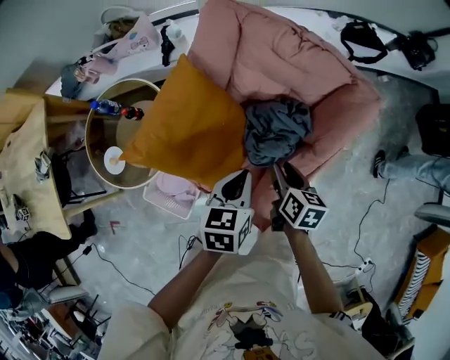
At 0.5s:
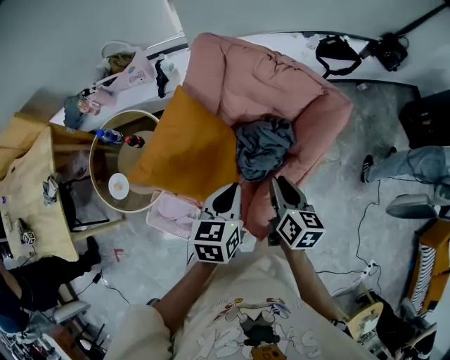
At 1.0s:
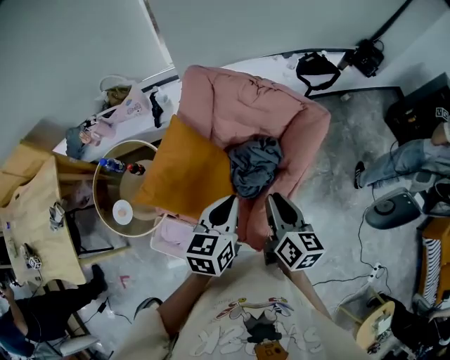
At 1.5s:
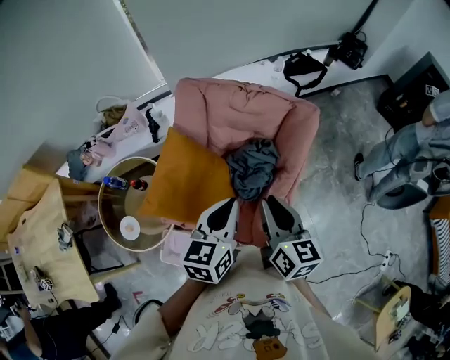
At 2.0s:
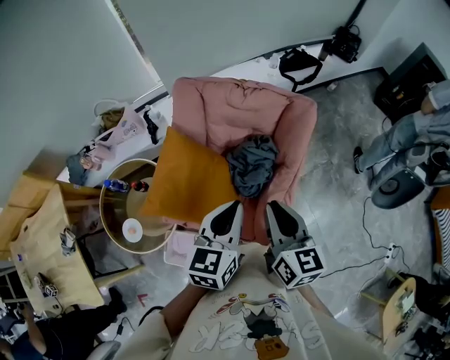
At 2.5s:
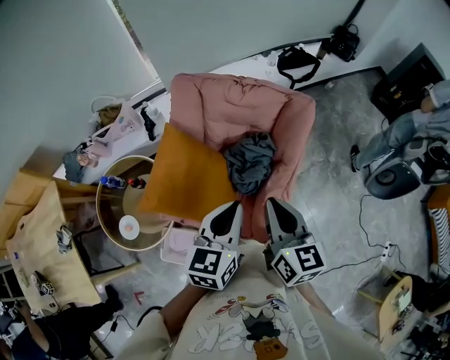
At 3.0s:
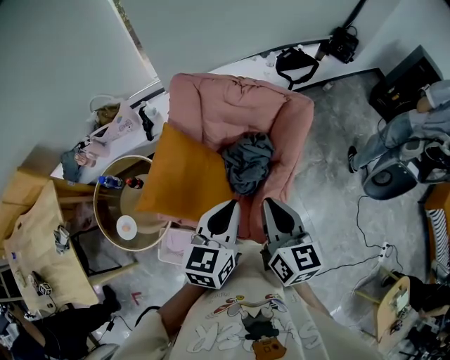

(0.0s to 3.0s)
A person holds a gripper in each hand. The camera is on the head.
0.0s - 1.5s: The grippers both shift upward by some 20 cm. The right gripper turns by about 30 degrees, while the left gripper turns by some 20 degrees.
1.5s - 3.0s: The grippers make only small movements.

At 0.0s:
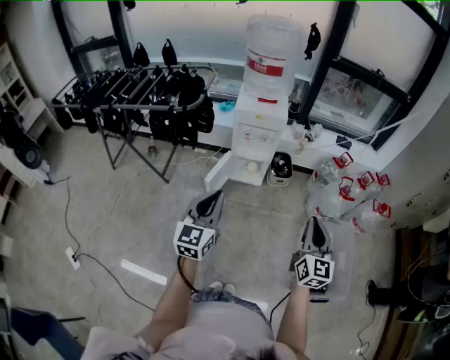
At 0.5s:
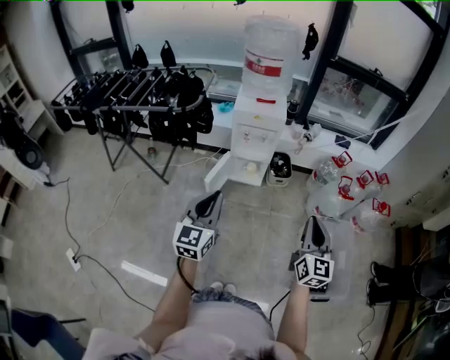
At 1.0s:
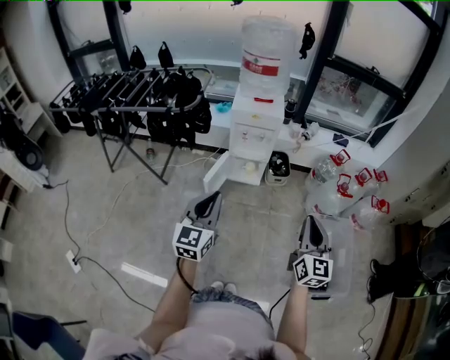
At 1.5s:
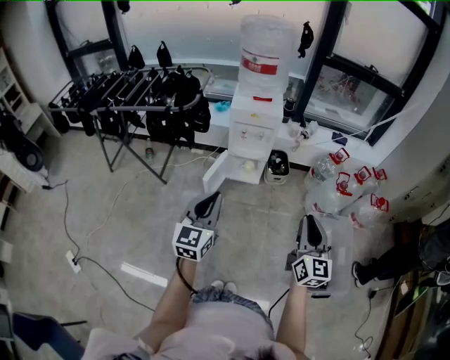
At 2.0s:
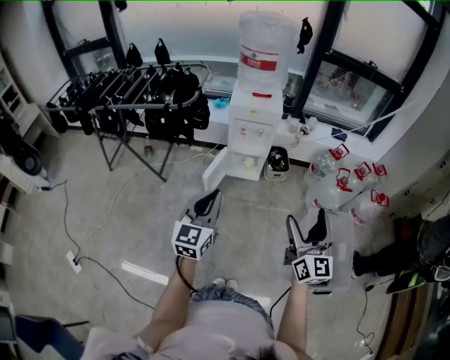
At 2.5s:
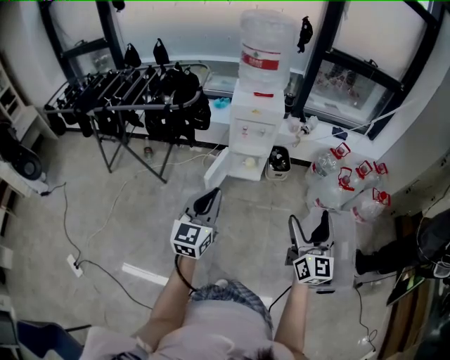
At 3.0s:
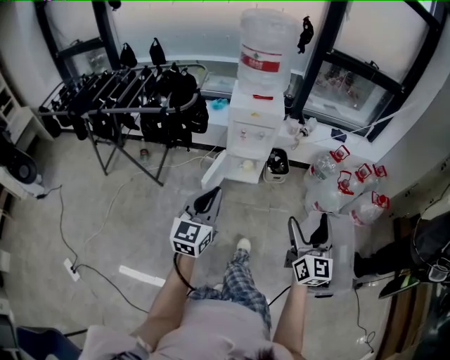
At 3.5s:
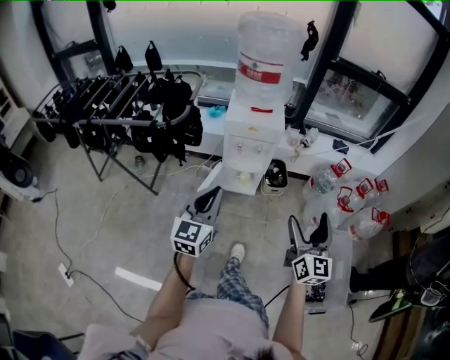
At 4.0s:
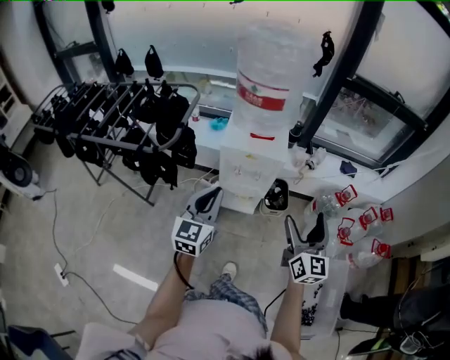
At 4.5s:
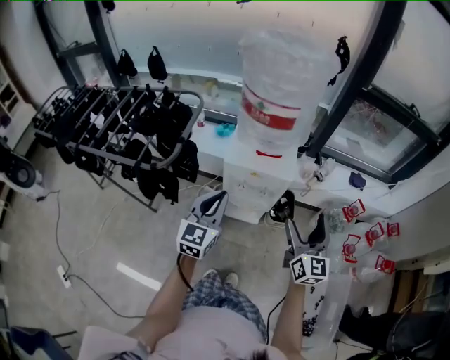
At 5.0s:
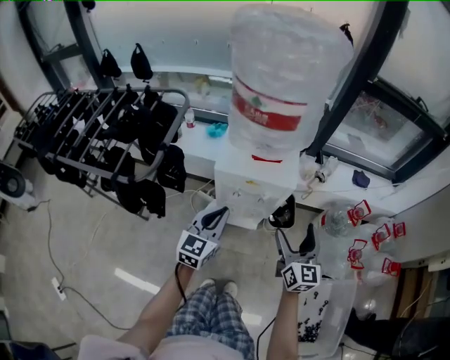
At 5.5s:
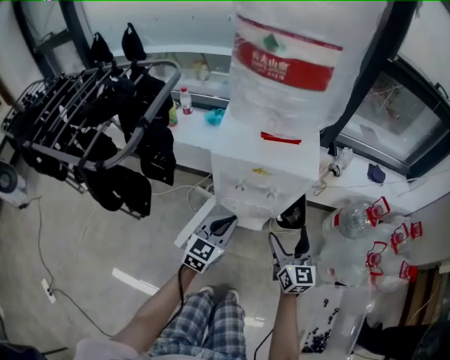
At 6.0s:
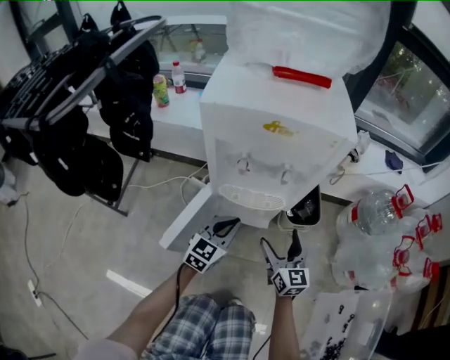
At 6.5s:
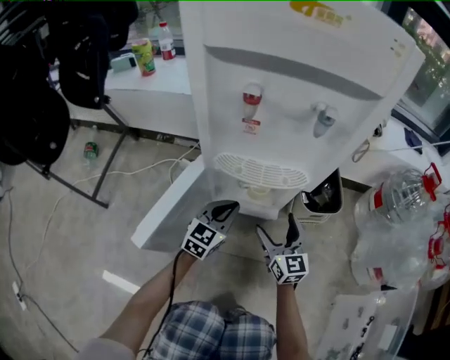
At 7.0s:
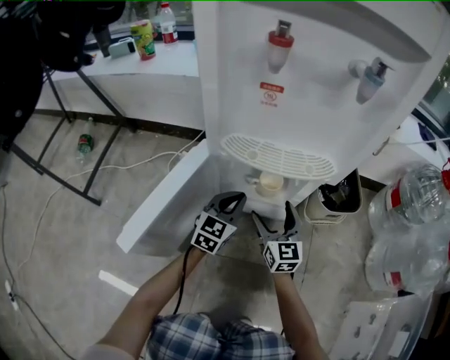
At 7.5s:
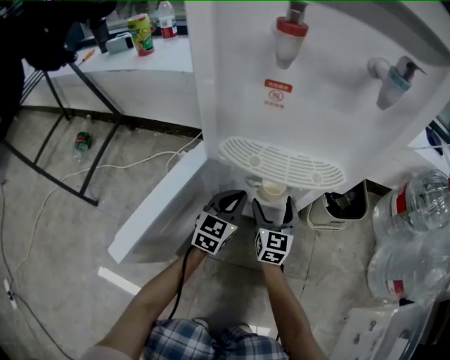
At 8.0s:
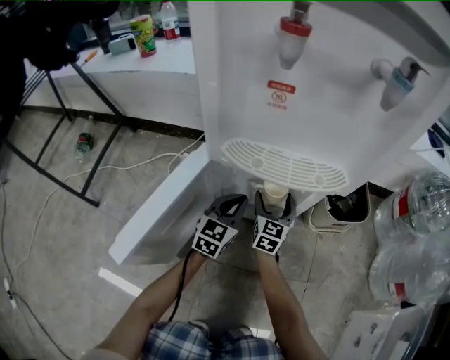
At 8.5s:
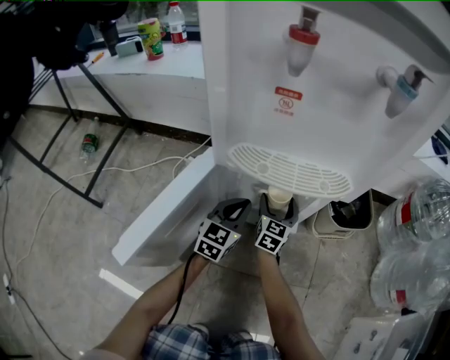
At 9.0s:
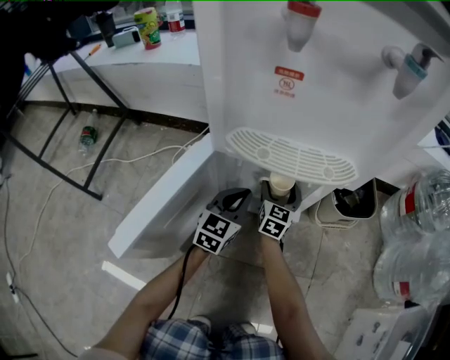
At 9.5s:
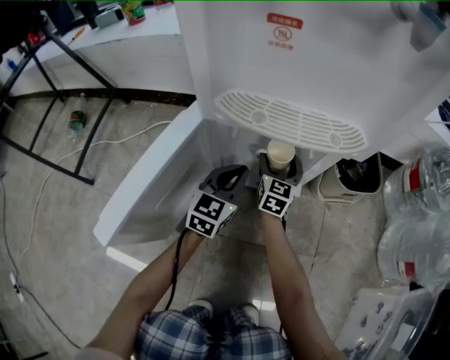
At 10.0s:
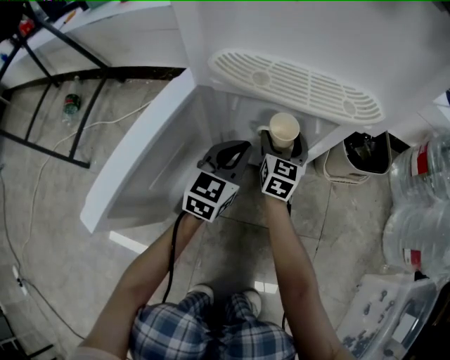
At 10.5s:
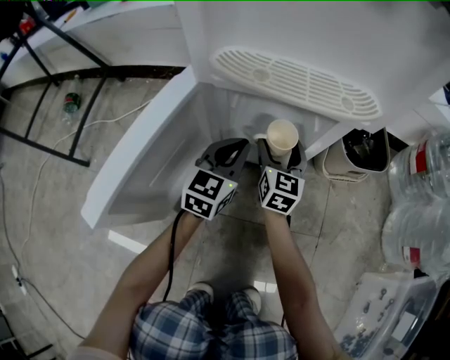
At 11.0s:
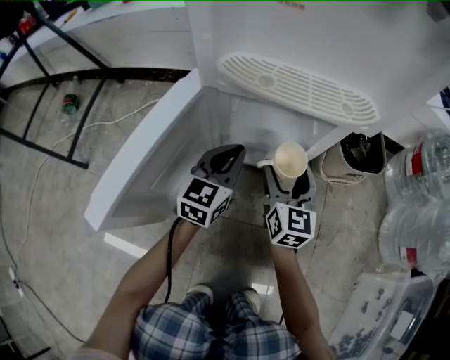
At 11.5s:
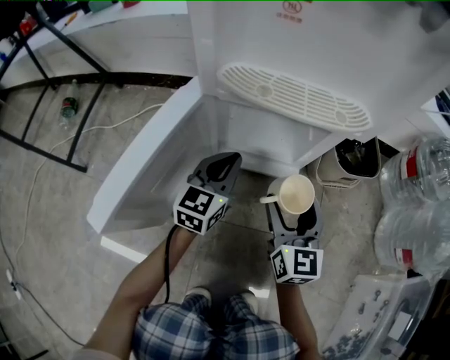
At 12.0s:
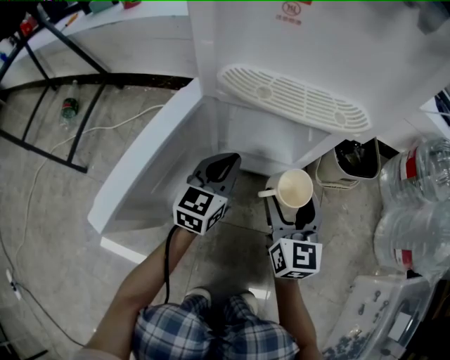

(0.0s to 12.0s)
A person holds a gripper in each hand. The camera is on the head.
0.0s - 2.0s: The right gripper shifts by some 5 cm, and opens up.
2.0s - 4.0s: Both grippers travel together forward, about 35 cm.
4.0s - 6.0s: The grippers both shift downward by some 60 cm. The left gripper turns by some 20 degrees.
6.0s - 8.0s: The right gripper moves downward and forward, approximately 40 cm, and changes its angle by approximately 20 degrees. The left gripper travels downward by approximately 30 cm.
8.0s - 10.0s: The grippers make only small movements.
10.0s - 12.0s: The right gripper travels backward and upward by roughly 20 cm.

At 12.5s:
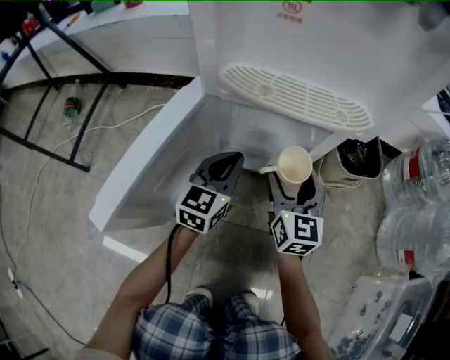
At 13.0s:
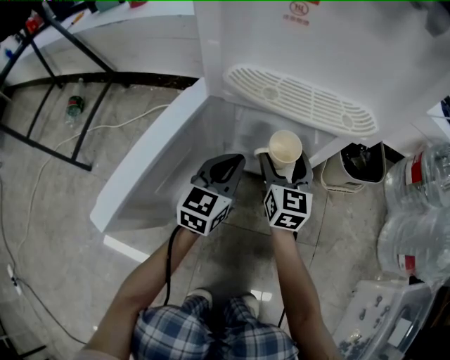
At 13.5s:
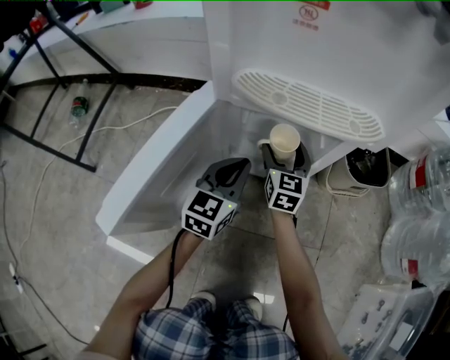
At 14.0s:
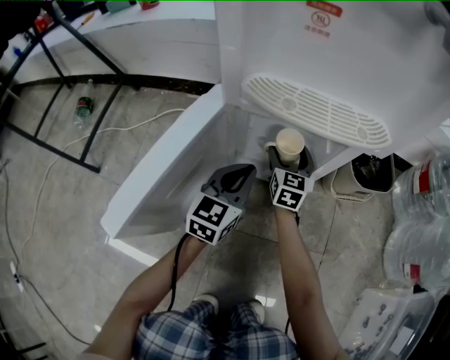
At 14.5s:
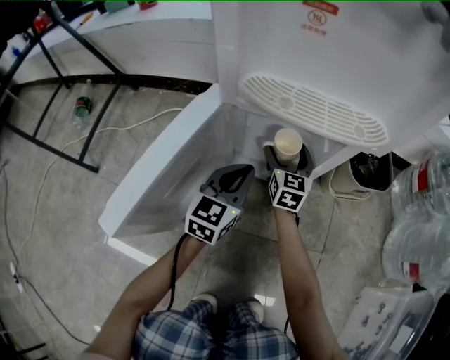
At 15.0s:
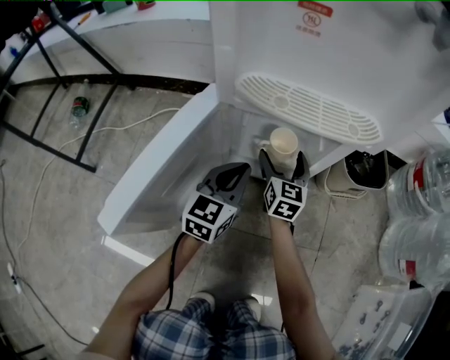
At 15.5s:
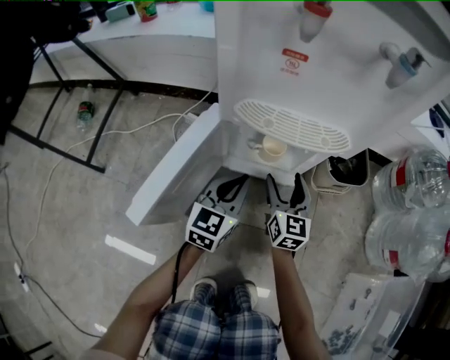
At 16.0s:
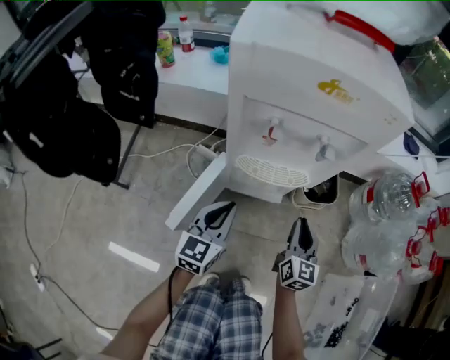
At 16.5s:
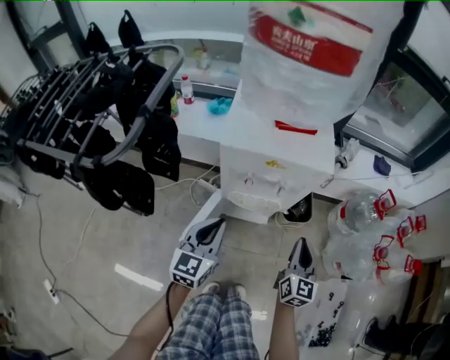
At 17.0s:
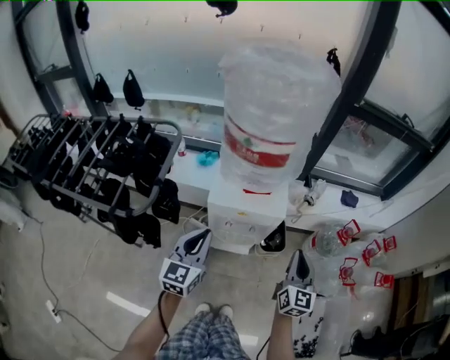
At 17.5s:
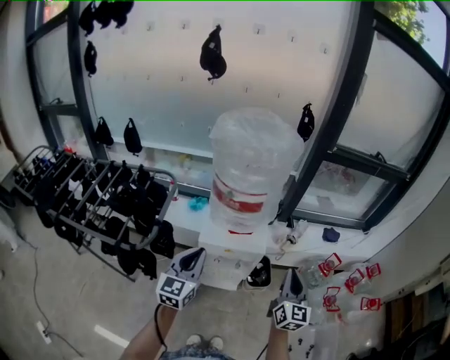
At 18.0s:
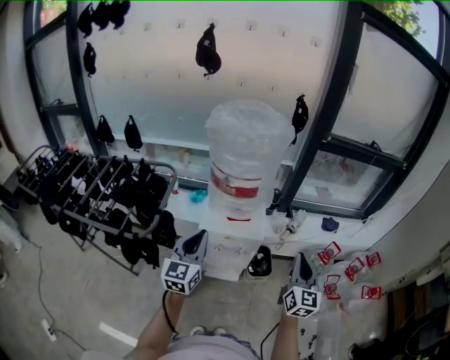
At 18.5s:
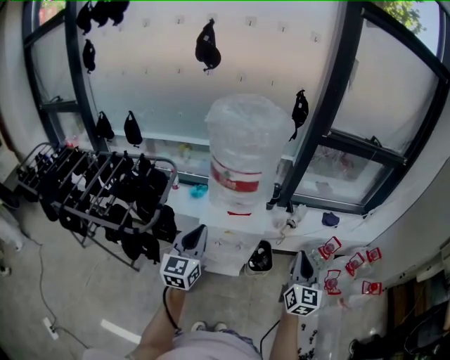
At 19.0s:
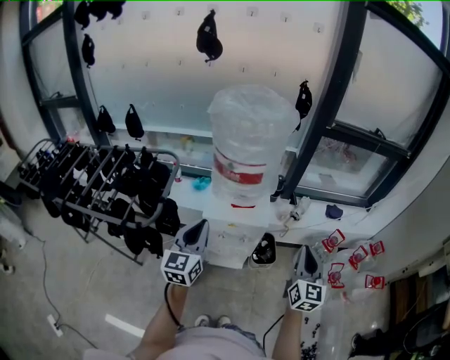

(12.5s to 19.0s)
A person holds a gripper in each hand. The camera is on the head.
12.5s - 14.5s: The right gripper shifts some 15 cm forward and downward.
14.5s - 17.0s: The two grippers go roughly 80 cm upward. The right gripper closes.
17.0s - 19.0s: The grippers both shift upward by approximately 15 cm.

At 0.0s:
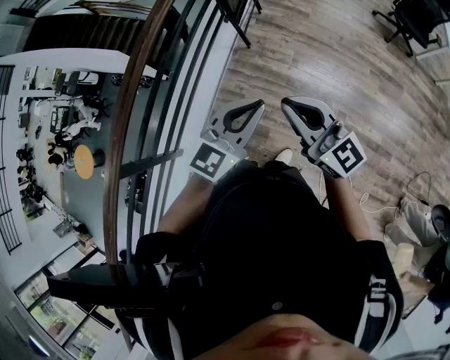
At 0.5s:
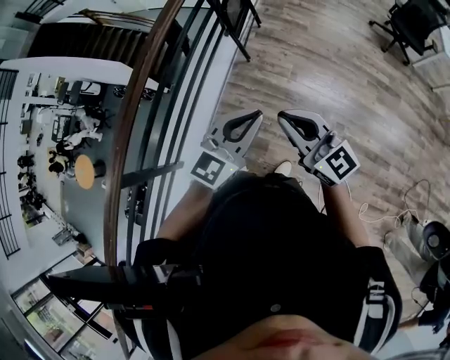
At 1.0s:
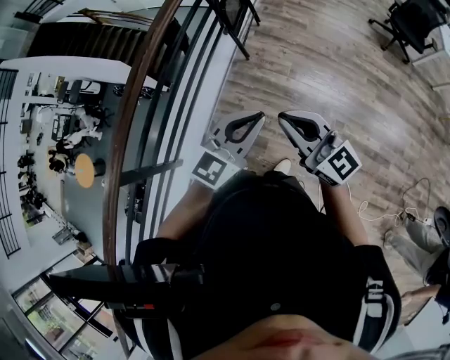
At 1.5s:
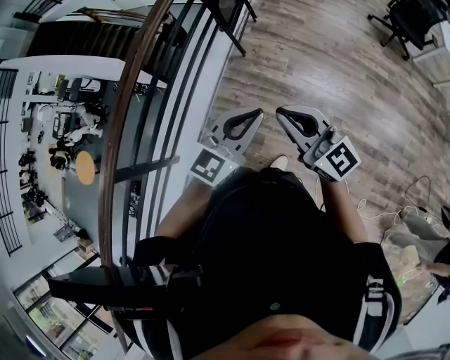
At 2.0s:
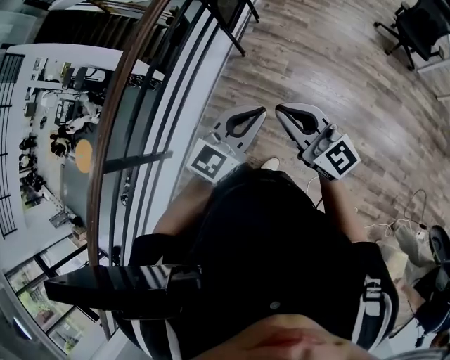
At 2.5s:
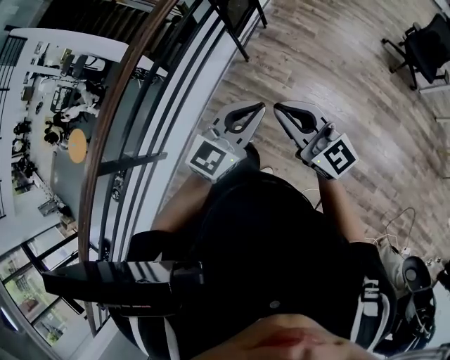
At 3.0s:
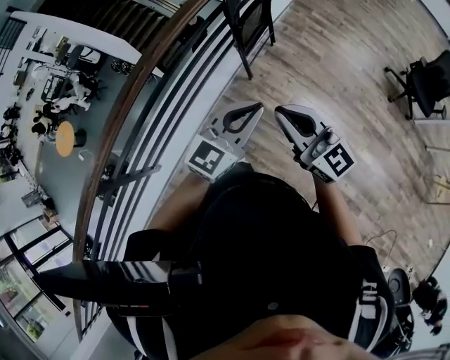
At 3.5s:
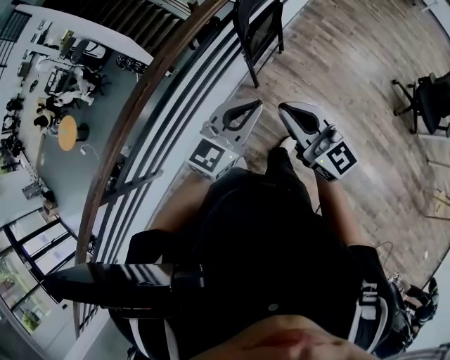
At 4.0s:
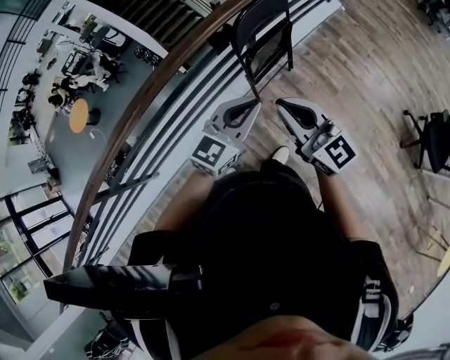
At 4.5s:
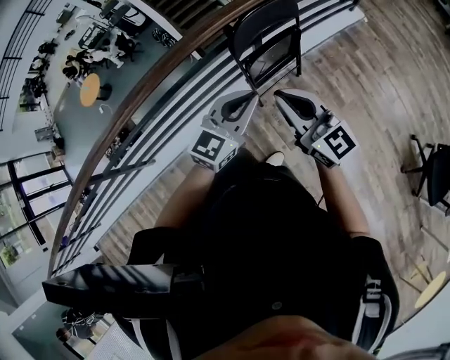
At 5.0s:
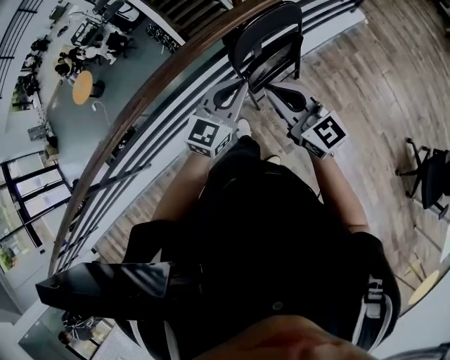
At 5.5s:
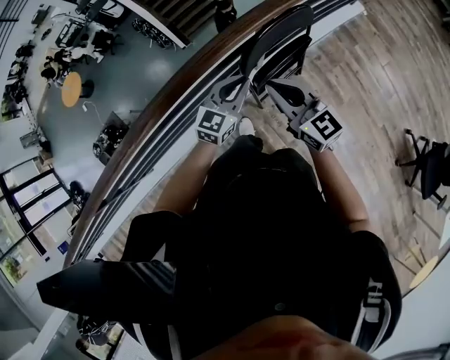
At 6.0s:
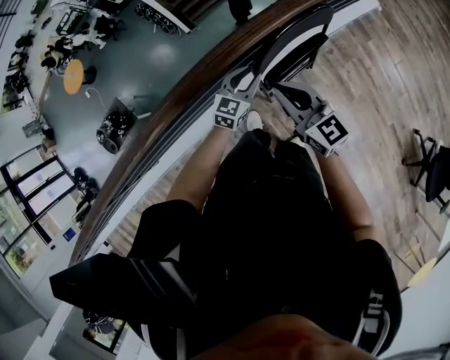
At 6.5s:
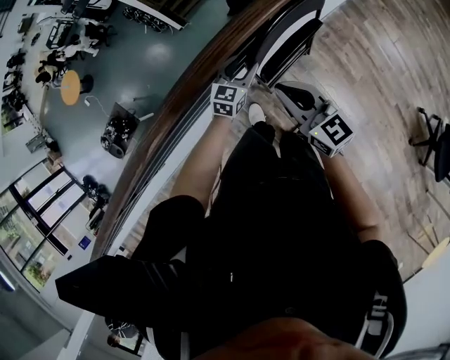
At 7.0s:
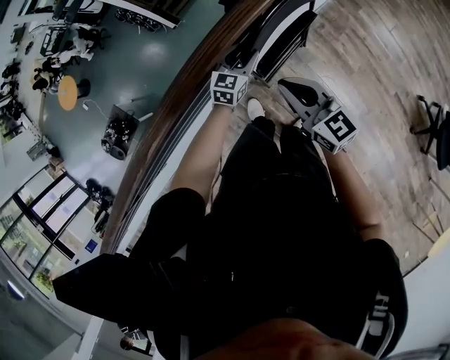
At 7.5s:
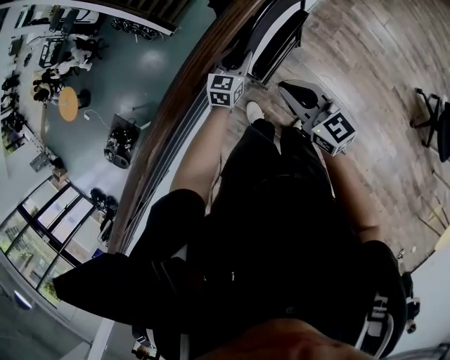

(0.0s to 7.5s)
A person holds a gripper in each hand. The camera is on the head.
0.0s - 2.0s: Both grippers travel together to the right, approximately 10 cm.
2.0s - 4.0s: Both grippers are carried forward, roughly 50 cm. The left gripper changes its angle by some 20 degrees.
4.0s - 5.5s: The right gripper moves forward, about 25 cm, while the left gripper goes approximately 30 cm forward and downward.
5.5s - 7.5s: The right gripper goes approximately 10 cm downward. The left gripper moves downward and forward, approximately 20 cm, and opens its fingers.
